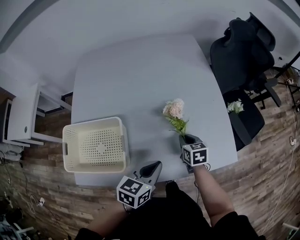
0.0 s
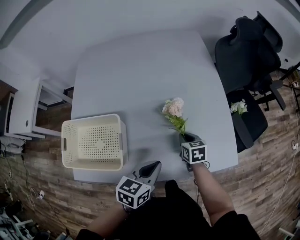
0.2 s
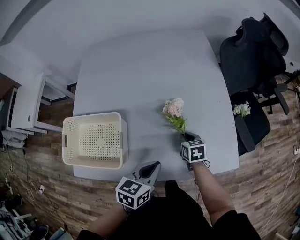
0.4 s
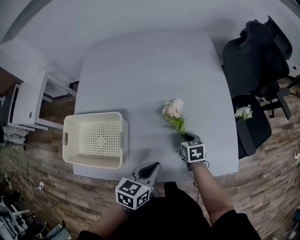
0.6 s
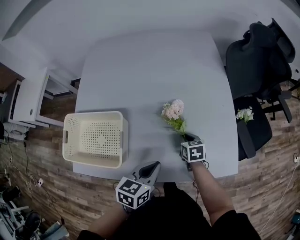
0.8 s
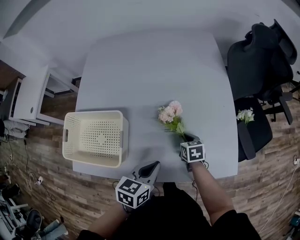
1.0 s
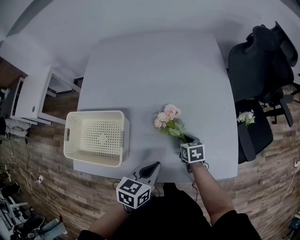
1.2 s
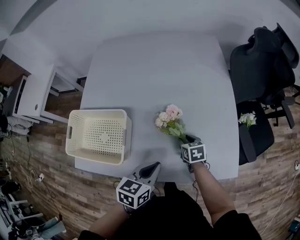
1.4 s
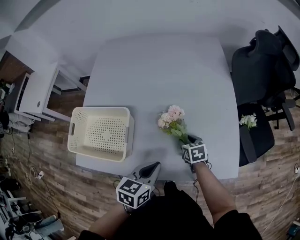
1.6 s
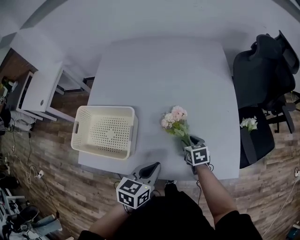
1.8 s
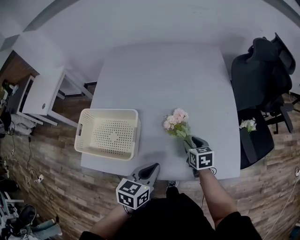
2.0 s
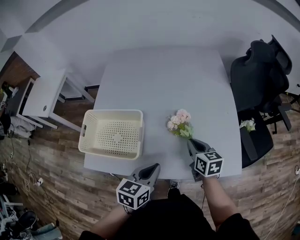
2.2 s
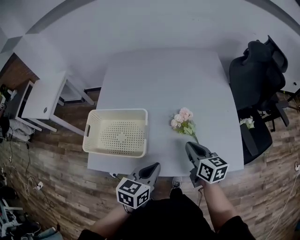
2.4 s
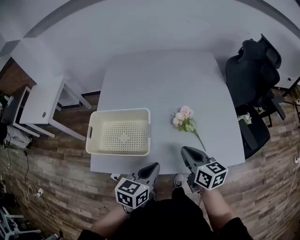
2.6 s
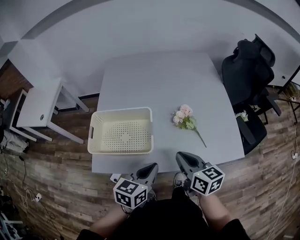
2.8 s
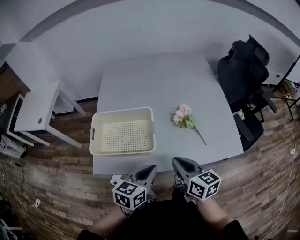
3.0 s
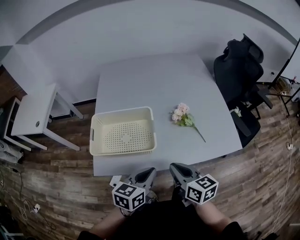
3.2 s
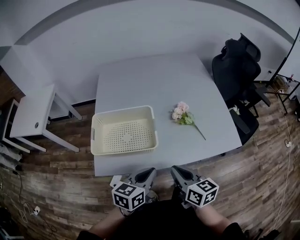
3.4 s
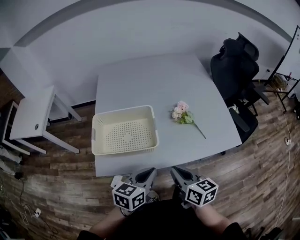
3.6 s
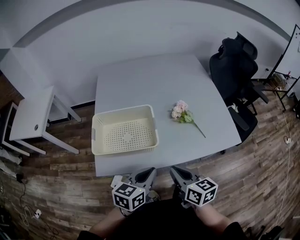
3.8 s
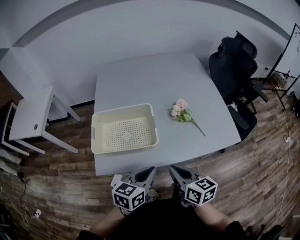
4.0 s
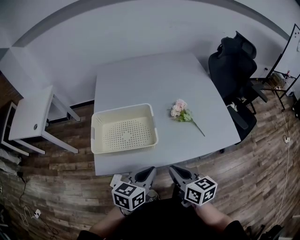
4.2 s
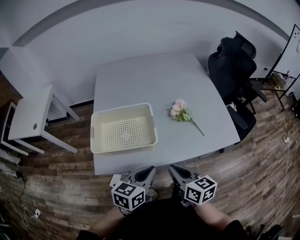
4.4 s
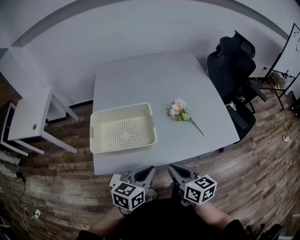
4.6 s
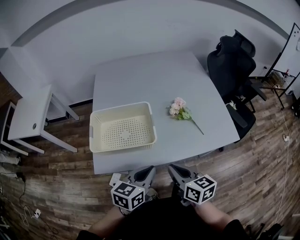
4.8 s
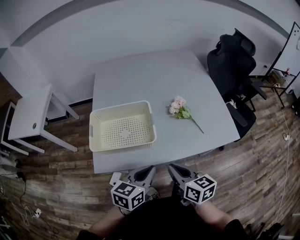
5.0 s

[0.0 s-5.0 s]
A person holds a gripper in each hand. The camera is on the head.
0.0 to 1.6 s: The right gripper goes approximately 5 cm downward, and opens its fingers.
1.6 to 3.4 s: The right gripper moves backward, upward and to the left, approximately 40 cm, angles its fingers upward, by about 30 degrees, and closes its fingers. Meanwhile the left gripper is displaced to the left and backward by about 25 cm.
3.4 to 5.0 s: The grippers make only small movements.

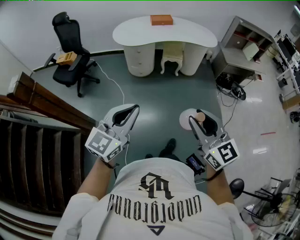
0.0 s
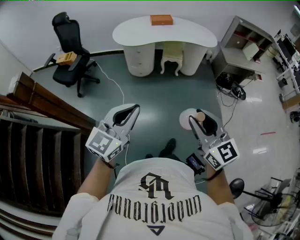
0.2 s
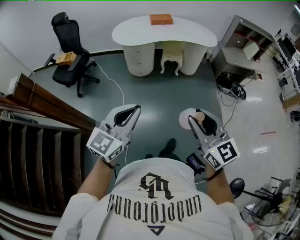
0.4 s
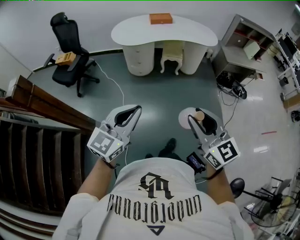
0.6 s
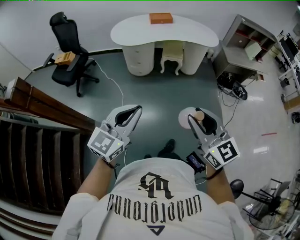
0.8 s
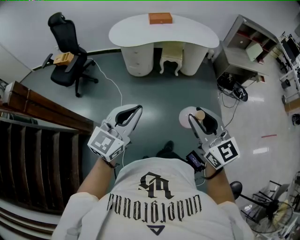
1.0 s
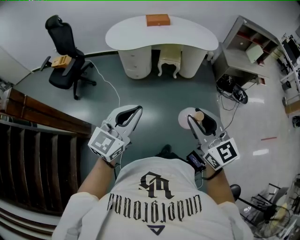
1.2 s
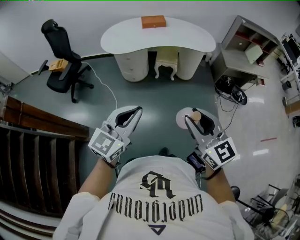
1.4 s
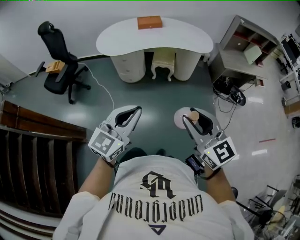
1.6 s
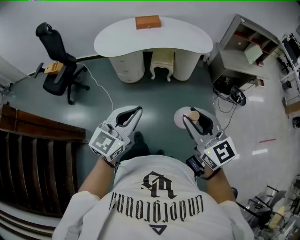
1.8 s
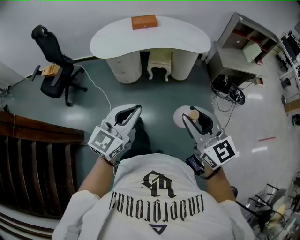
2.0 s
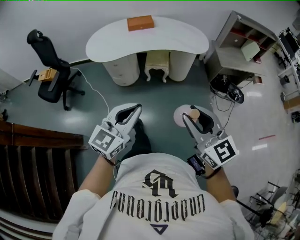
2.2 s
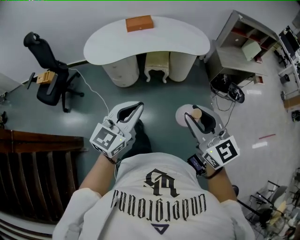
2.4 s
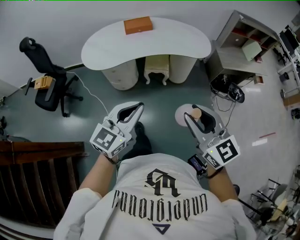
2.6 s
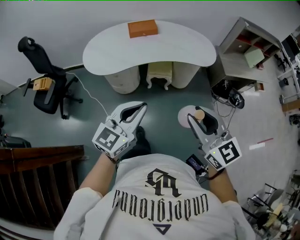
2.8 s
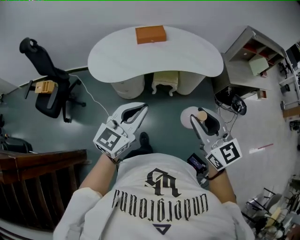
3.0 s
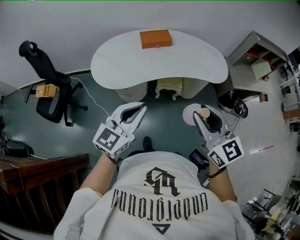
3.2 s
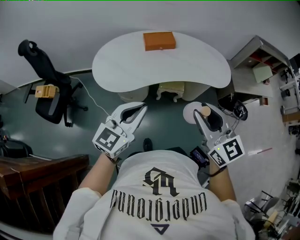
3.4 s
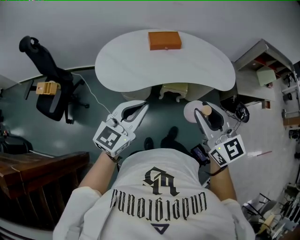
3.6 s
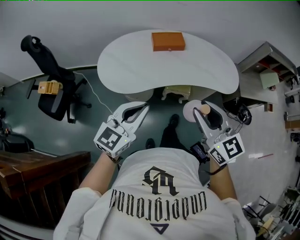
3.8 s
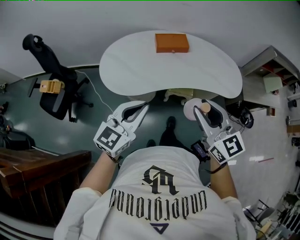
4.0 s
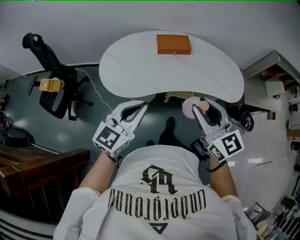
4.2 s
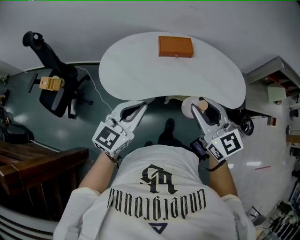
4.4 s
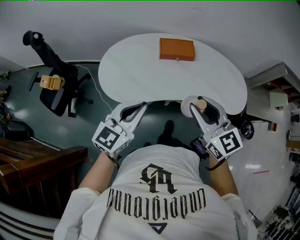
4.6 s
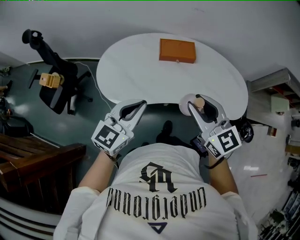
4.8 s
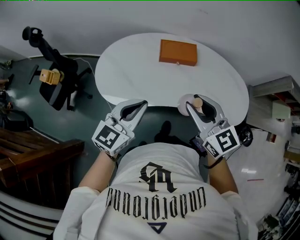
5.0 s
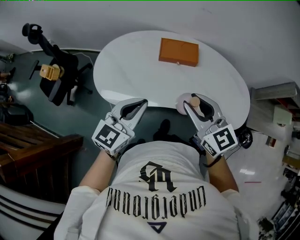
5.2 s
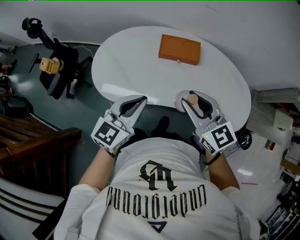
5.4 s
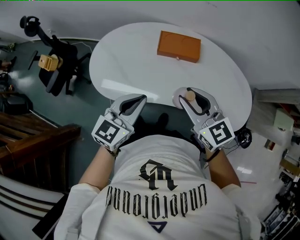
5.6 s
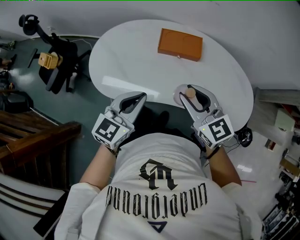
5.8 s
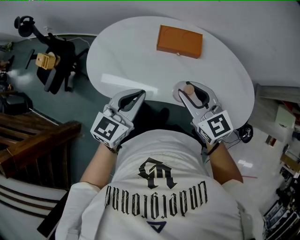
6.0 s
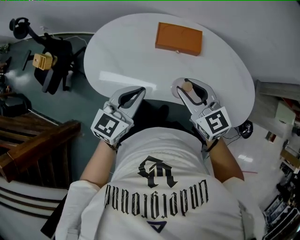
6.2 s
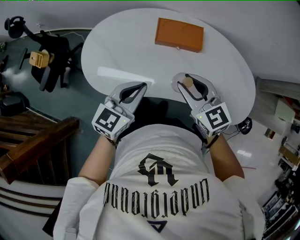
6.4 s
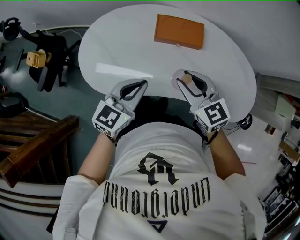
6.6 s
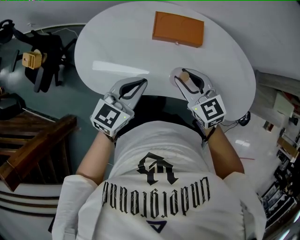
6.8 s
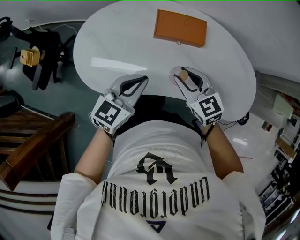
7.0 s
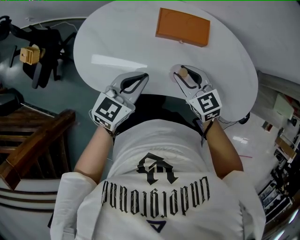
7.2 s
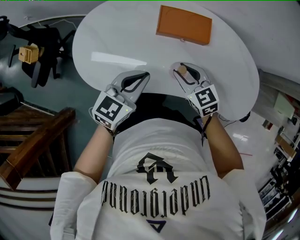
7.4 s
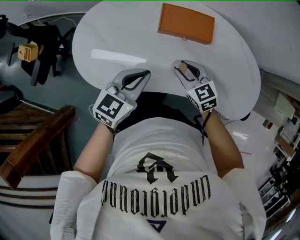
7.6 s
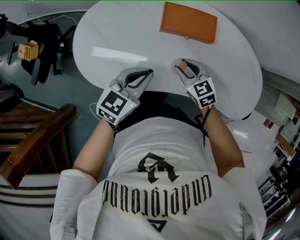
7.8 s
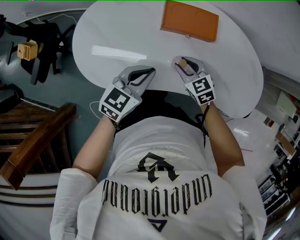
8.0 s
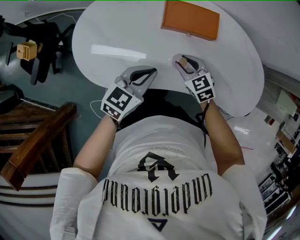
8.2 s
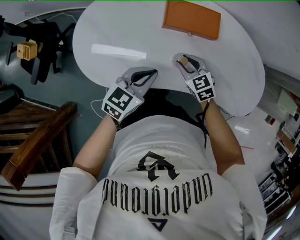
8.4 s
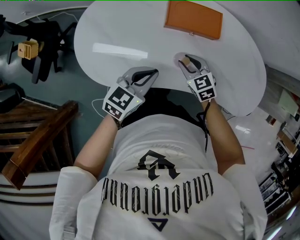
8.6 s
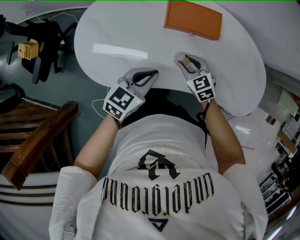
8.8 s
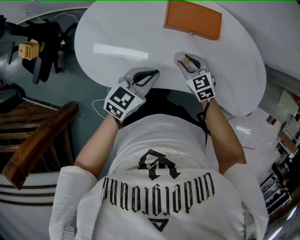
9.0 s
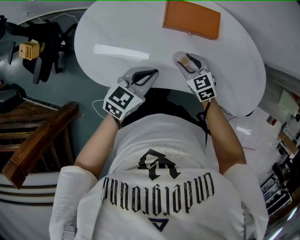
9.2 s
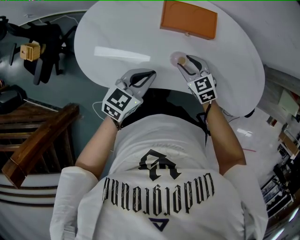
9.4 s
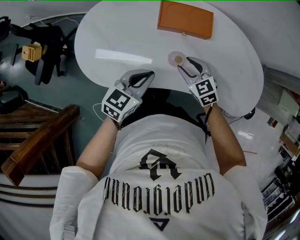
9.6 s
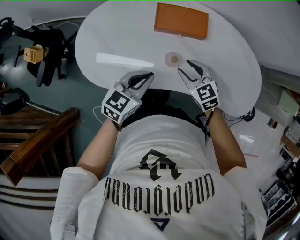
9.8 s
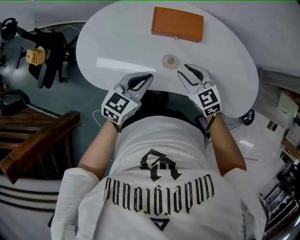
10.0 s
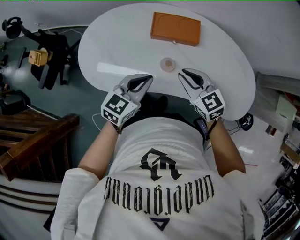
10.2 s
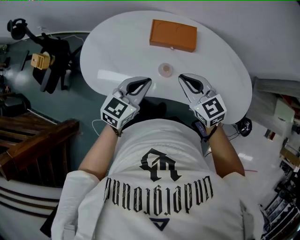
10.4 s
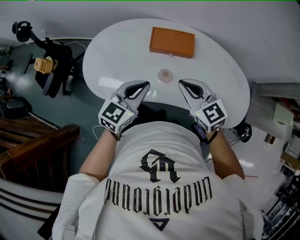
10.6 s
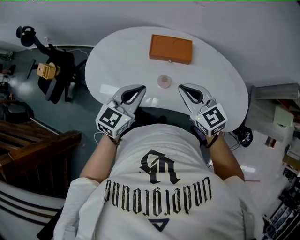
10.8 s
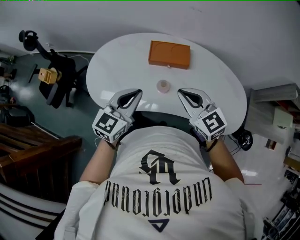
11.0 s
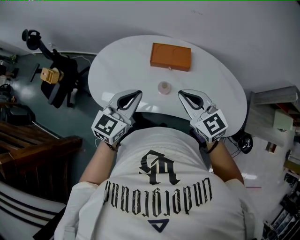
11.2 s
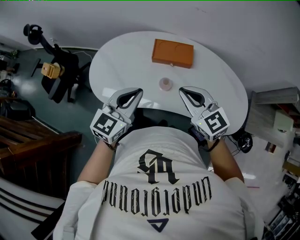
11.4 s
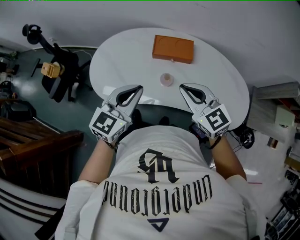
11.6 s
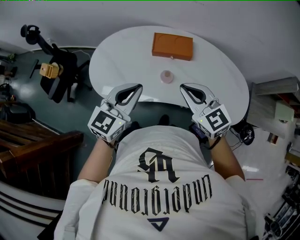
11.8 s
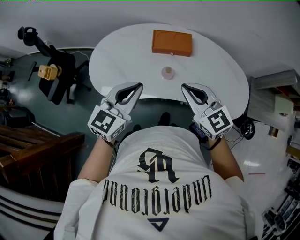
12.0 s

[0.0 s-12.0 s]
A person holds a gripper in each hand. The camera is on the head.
0.0 to 1.6 s: Both grippers move forward and to the right, some 25 cm.
1.6 to 3.0 s: Both grippers move forward, roughly 35 cm.
3.0 to 4.4 s: The two grippers go roughly 25 cm forward and to the left.
4.4 to 6.0 s: The left gripper is displaced forward, to the right and downward by about 20 cm. The right gripper travels forward and downward by approximately 25 cm, and turns by approximately 20 degrees.
6.0 to 7.6 s: The left gripper heads downward and forward, covering roughly 15 cm. The right gripper goes about 20 cm downward.
7.6 to 9.0 s: The right gripper shifts some 5 cm downward. Meanwhile the left gripper ends up about 5 cm from where it was.
9.0 to 10.4 s: The right gripper shifts about 20 cm upward, changes its angle by about 20 degrees, and closes; the left gripper travels upward by about 10 cm.
10.4 to 12.0 s: The left gripper is displaced upward, backward and to the left by some 15 cm. Meanwhile the right gripper moves upward and backward, some 15 cm.

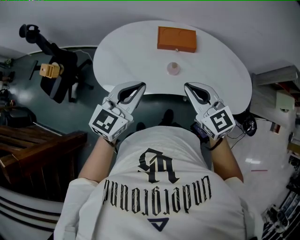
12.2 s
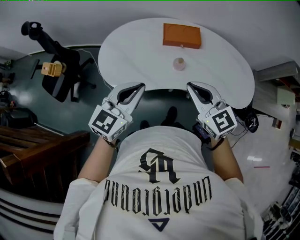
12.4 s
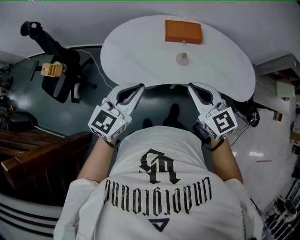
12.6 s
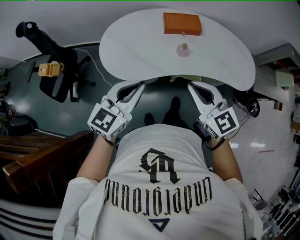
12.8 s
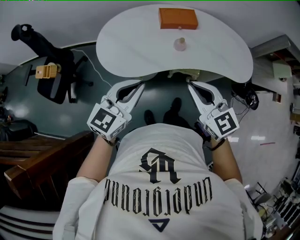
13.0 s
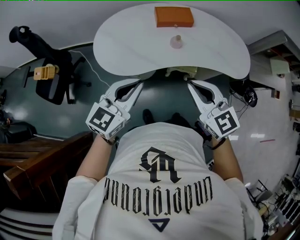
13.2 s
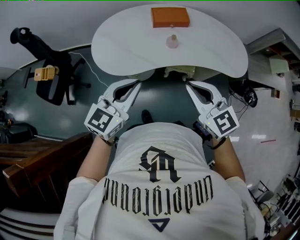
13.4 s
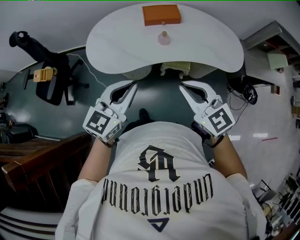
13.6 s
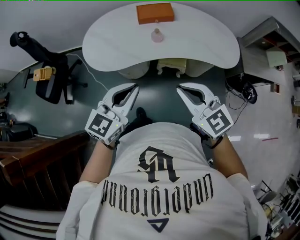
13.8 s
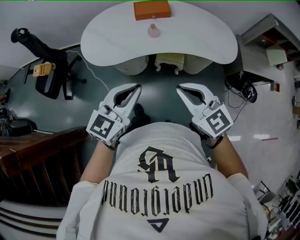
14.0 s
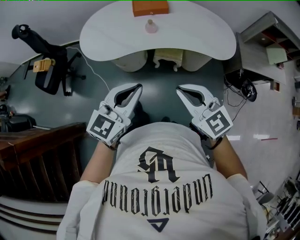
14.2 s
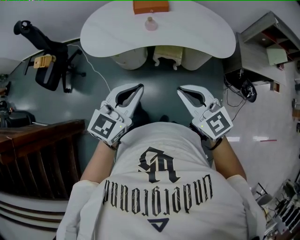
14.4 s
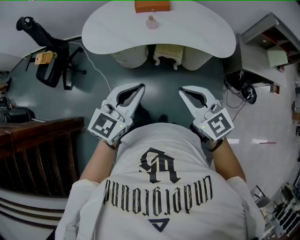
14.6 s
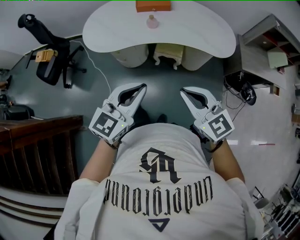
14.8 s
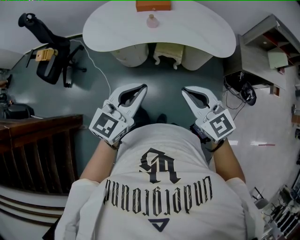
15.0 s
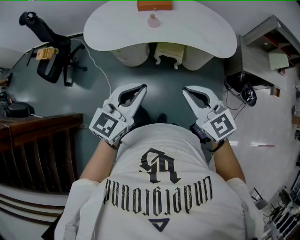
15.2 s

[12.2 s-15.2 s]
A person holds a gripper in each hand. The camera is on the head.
12.2 to 13.8 s: Both grippers move backward, roughly 25 cm.
13.8 to 15.2 s: Both grippers travel together backward and to the right, approximately 15 cm.

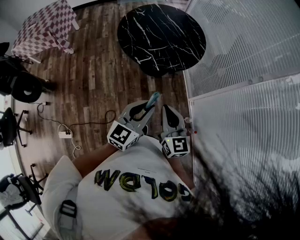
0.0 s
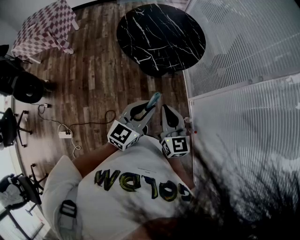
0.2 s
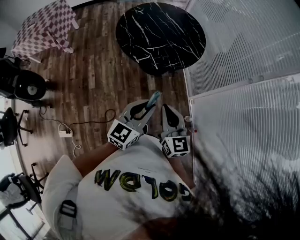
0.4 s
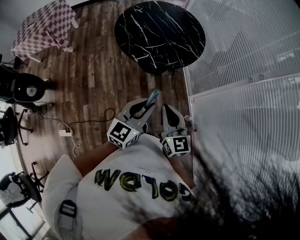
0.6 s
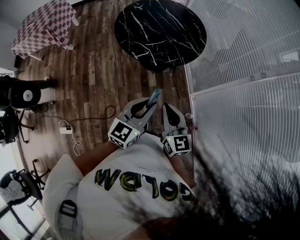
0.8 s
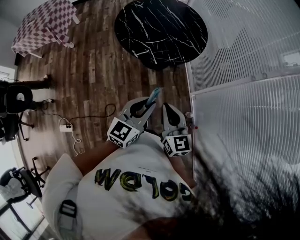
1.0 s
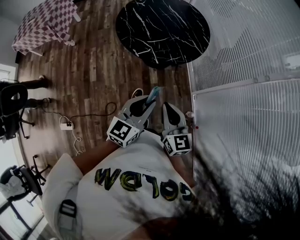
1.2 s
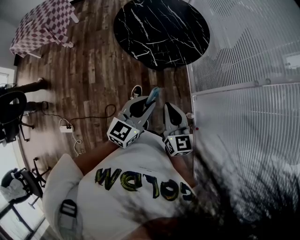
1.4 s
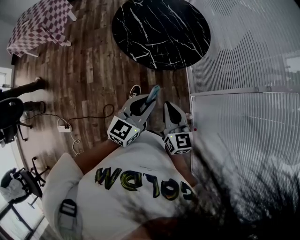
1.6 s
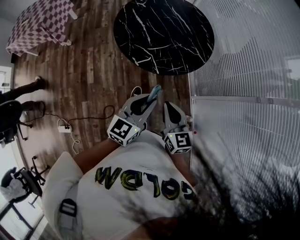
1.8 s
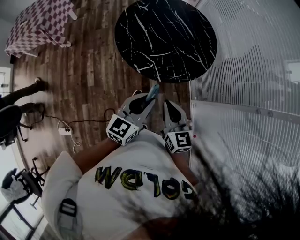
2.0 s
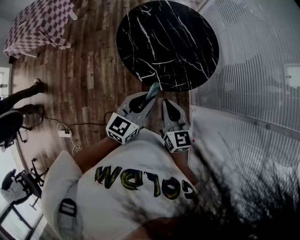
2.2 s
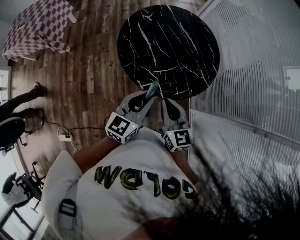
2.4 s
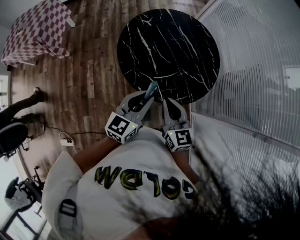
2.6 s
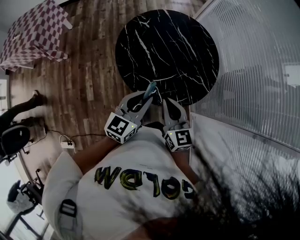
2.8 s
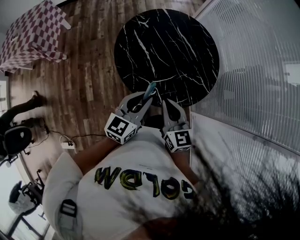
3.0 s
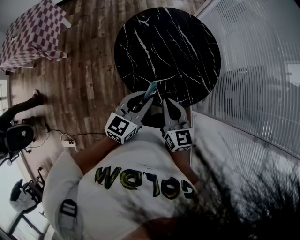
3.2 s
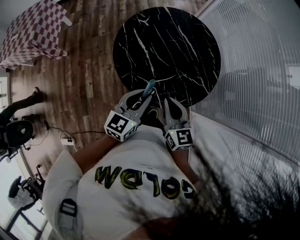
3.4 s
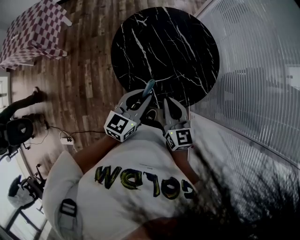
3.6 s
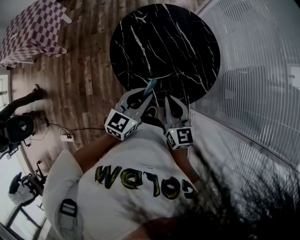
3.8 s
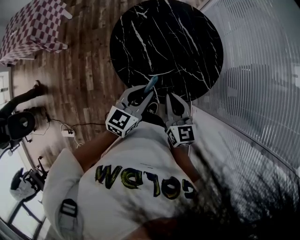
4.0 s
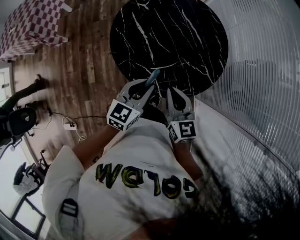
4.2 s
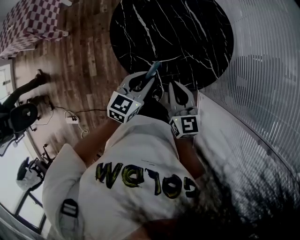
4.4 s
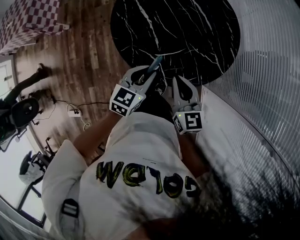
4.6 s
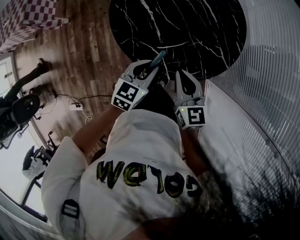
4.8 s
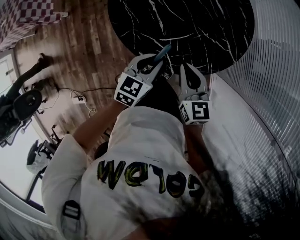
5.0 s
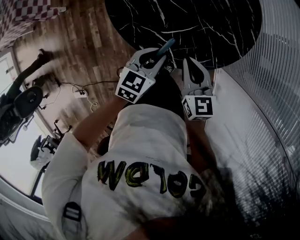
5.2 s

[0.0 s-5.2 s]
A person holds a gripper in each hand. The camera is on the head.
0.0 to 1.8 s: The left gripper moves forward, some 15 cm, while the right gripper shifts about 15 cm forward and downward.
1.8 to 3.4 s: Both grippers move forward, about 25 cm.
3.4 to 5.2 s: The grippers both shift downward by some 15 cm. The left gripper turns by approximately 20 degrees.
